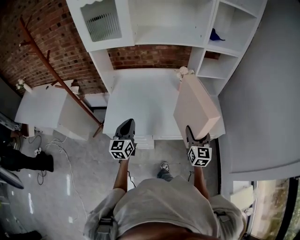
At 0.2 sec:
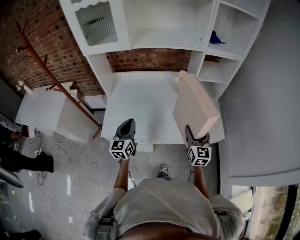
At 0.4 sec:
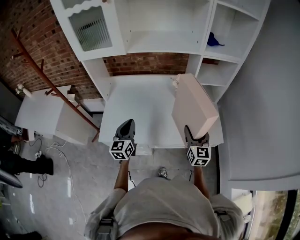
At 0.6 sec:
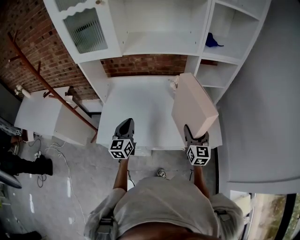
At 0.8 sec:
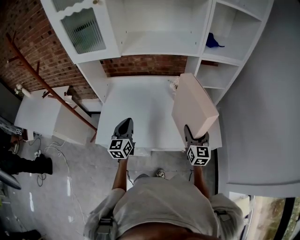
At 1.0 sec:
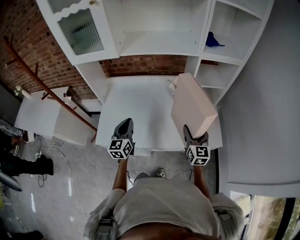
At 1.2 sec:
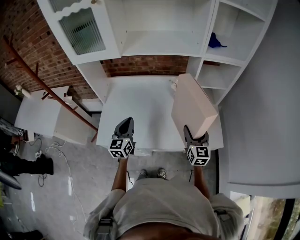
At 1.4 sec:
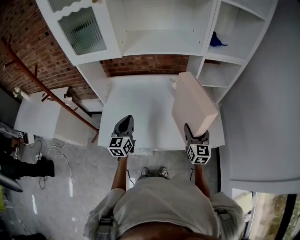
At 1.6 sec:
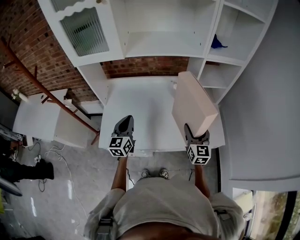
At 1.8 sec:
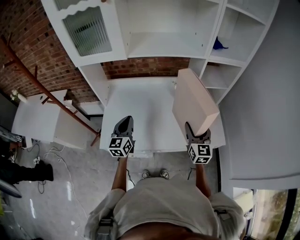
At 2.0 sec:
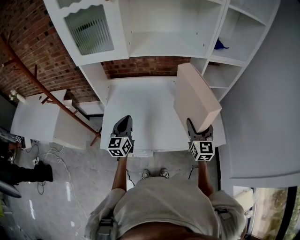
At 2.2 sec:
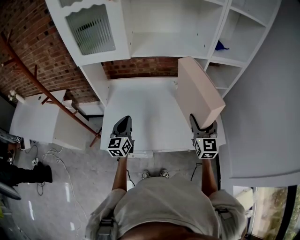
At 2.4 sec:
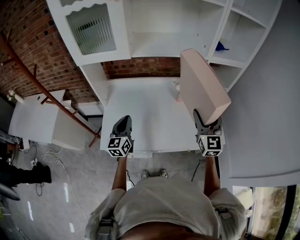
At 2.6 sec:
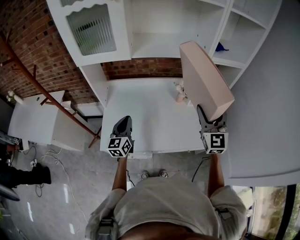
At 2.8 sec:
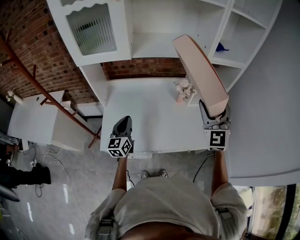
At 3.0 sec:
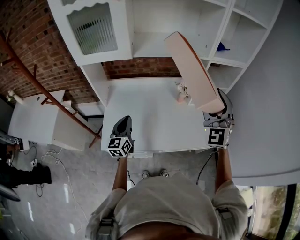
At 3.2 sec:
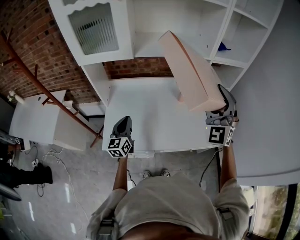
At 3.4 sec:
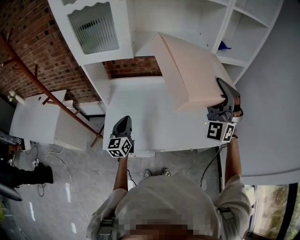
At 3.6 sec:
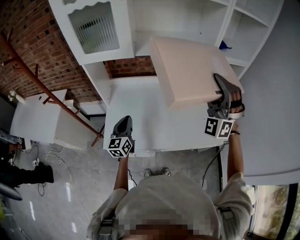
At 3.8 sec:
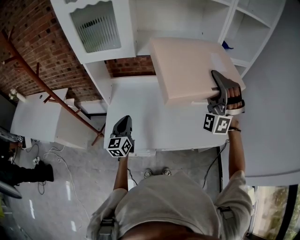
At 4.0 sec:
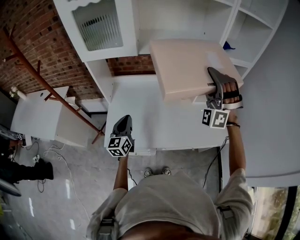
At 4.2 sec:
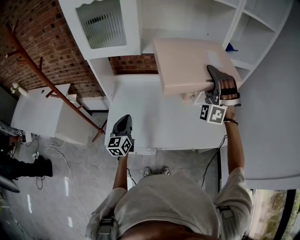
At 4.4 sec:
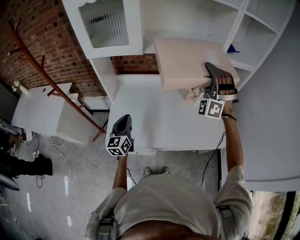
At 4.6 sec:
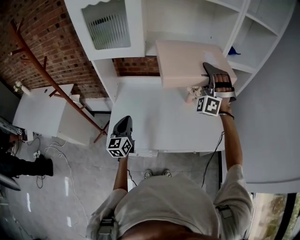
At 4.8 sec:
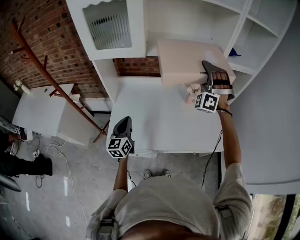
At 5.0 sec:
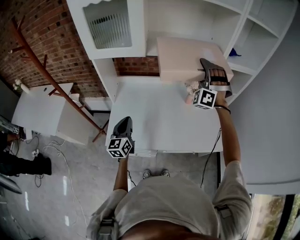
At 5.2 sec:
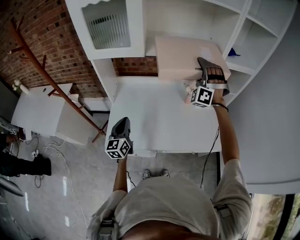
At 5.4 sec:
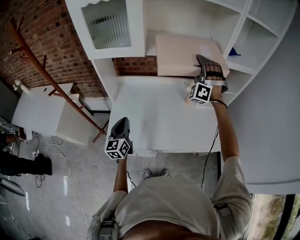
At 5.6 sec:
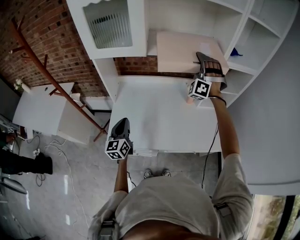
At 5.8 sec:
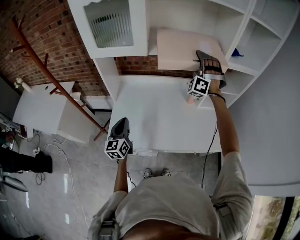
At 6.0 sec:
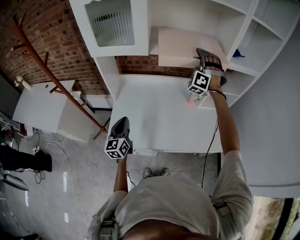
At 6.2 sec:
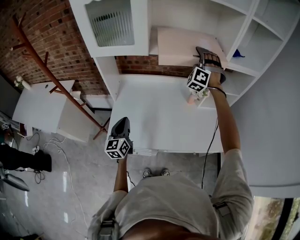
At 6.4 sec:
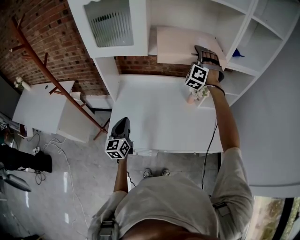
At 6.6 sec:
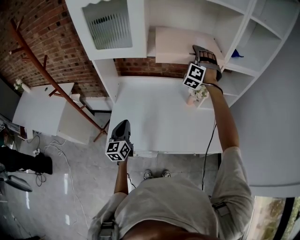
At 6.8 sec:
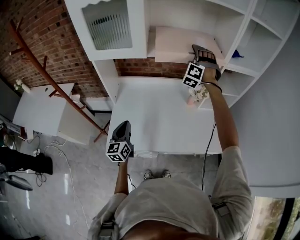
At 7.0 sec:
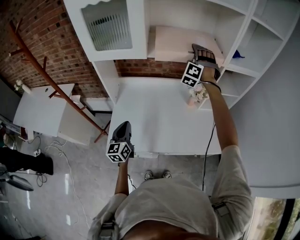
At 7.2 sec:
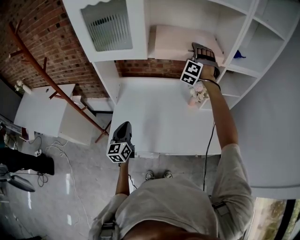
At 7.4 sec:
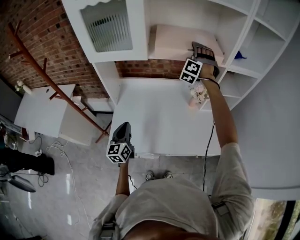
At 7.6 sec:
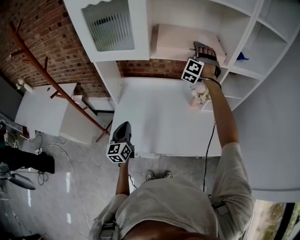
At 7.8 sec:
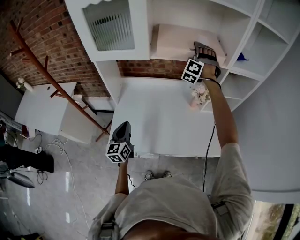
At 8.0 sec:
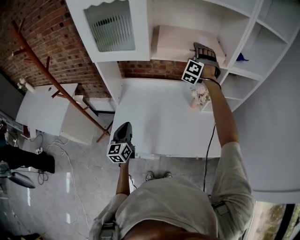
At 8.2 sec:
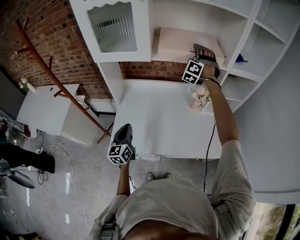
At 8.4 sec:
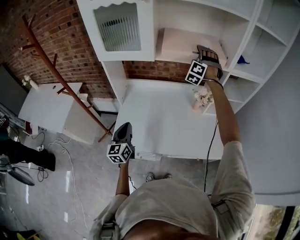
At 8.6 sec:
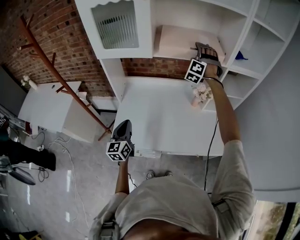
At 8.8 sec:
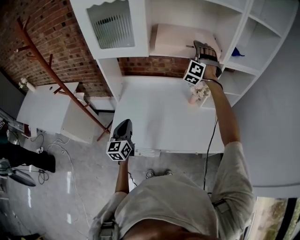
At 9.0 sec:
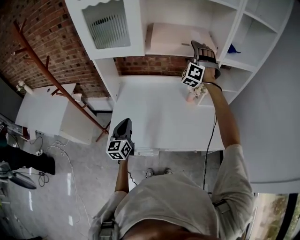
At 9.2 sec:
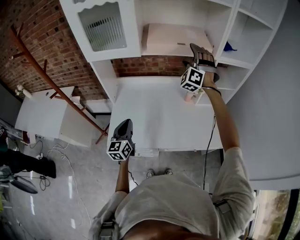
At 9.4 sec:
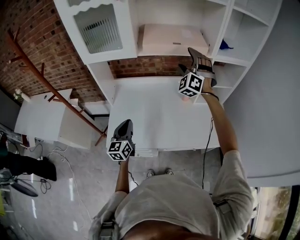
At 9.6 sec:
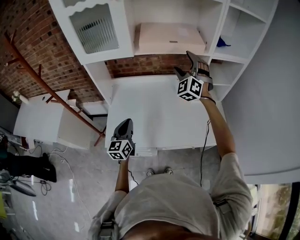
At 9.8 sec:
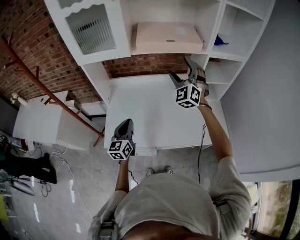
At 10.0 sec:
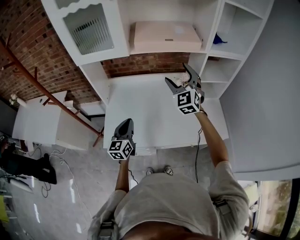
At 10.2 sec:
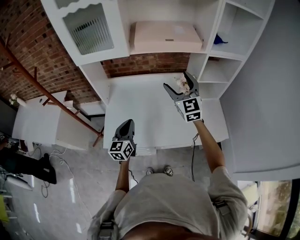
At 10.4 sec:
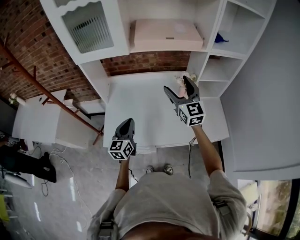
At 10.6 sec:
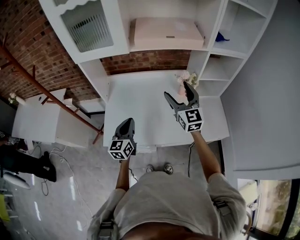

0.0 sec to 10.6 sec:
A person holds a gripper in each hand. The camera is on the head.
0.0 sec to 1.6 sec: The grippers both shift forward by some 15 cm.
1.6 sec to 3.0 sec: The right gripper goes some 20 cm upward, and rolls counterclockwise, seen from behind, by about 50 degrees. Meanwhile the left gripper heads to the left, covering about 5 cm.
3.0 sec to 4.6 sec: The right gripper heads forward and to the left, covering roughly 15 cm, and rotates around the line of its fingers by approximately 50 degrees, counterclockwise from behind.
4.6 sec to 6.0 sec: The right gripper shifts some 10 cm forward.
6.0 sec to 7.6 sec: The right gripper is displaced forward by some 5 cm.
7.6 sec to 9.0 sec: The right gripper is displaced backward by approximately 5 cm.
9.0 sec to 10.6 sec: The right gripper heads backward and downward, covering some 20 cm, and rotates around the line of its fingers by about 70 degrees, clockwise from behind. Meanwhile the left gripper heads to the right, covering some 5 cm.

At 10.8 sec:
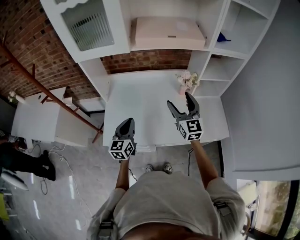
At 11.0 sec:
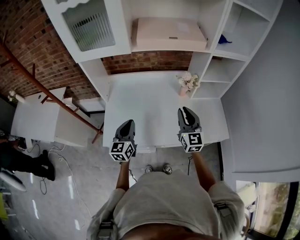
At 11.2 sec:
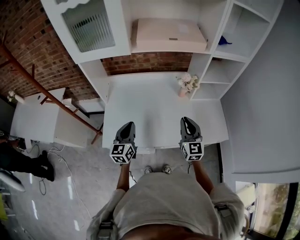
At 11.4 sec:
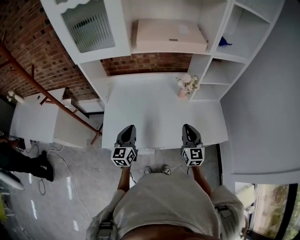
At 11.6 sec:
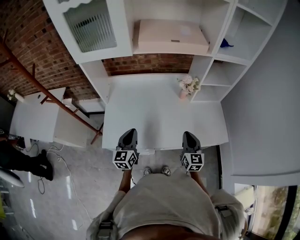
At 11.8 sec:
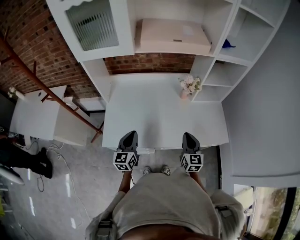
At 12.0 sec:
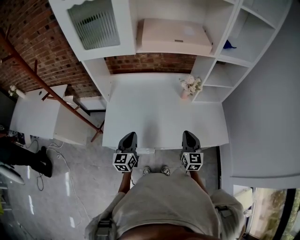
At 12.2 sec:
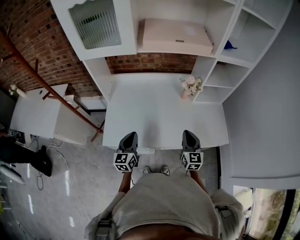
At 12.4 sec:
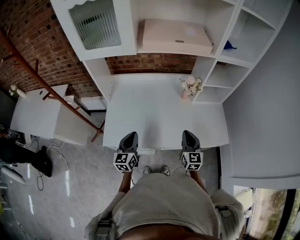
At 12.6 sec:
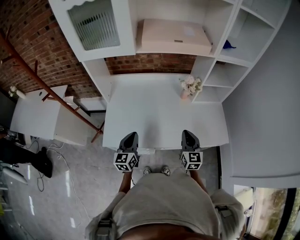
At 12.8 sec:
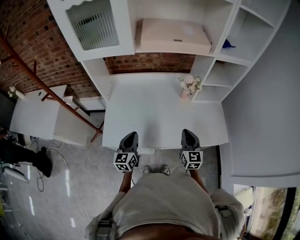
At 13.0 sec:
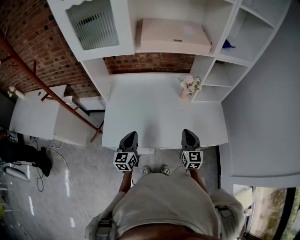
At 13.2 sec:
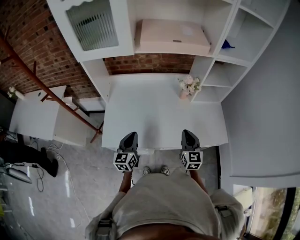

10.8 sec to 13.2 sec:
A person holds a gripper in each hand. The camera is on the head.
10.8 sec to 12.0 sec: The right gripper moves downward, backward and to the right, about 15 cm, and closes up, while the left gripper moves about 5 cm.
12.0 sec to 13.2 sec: The two grippers keep their place.

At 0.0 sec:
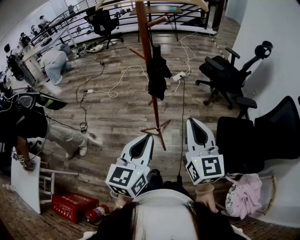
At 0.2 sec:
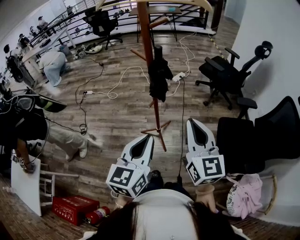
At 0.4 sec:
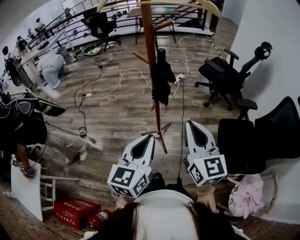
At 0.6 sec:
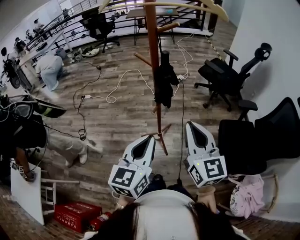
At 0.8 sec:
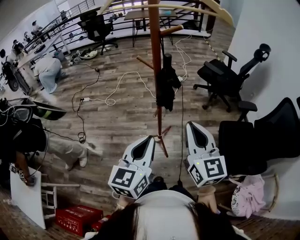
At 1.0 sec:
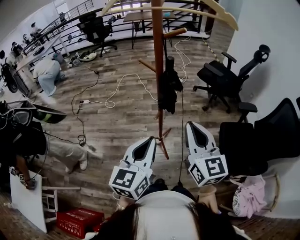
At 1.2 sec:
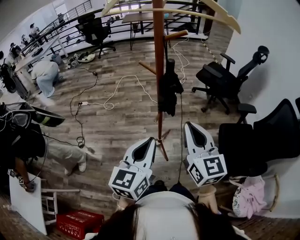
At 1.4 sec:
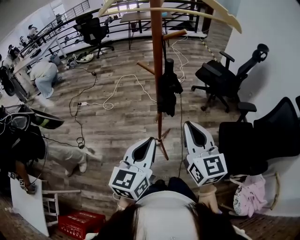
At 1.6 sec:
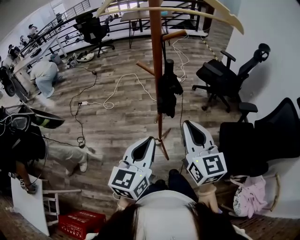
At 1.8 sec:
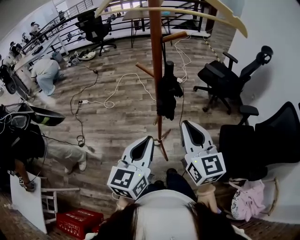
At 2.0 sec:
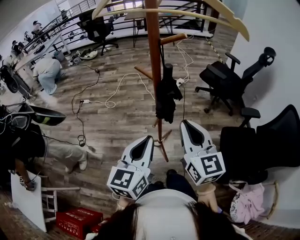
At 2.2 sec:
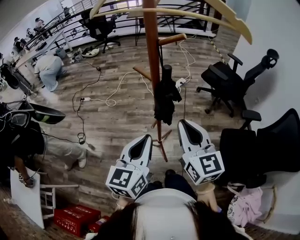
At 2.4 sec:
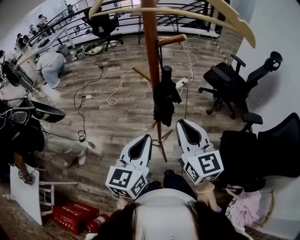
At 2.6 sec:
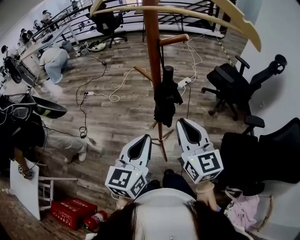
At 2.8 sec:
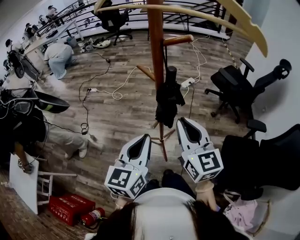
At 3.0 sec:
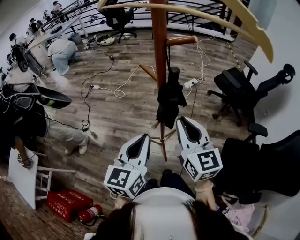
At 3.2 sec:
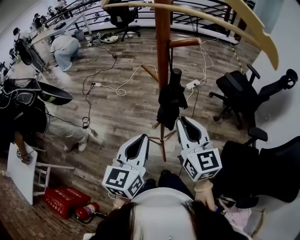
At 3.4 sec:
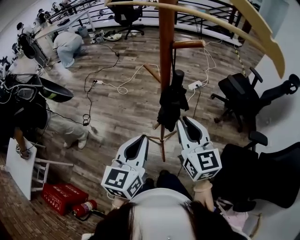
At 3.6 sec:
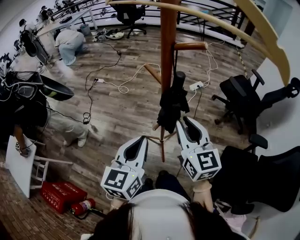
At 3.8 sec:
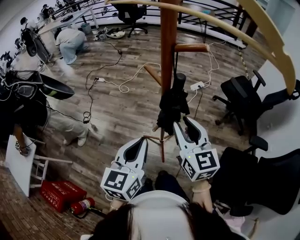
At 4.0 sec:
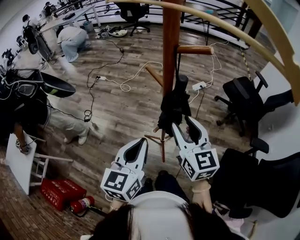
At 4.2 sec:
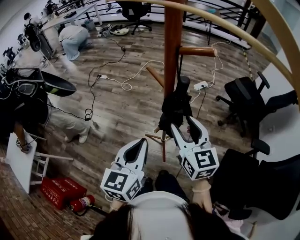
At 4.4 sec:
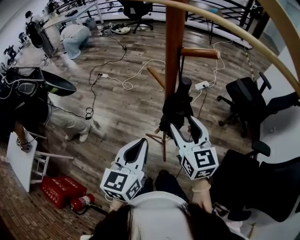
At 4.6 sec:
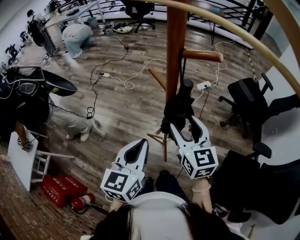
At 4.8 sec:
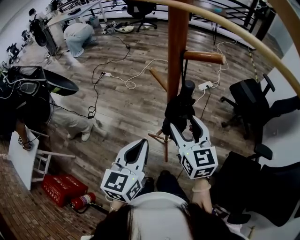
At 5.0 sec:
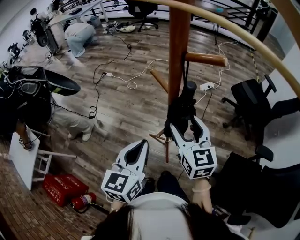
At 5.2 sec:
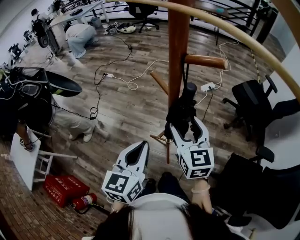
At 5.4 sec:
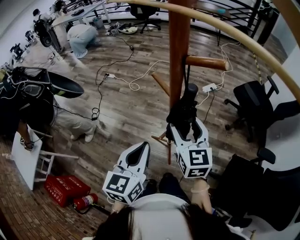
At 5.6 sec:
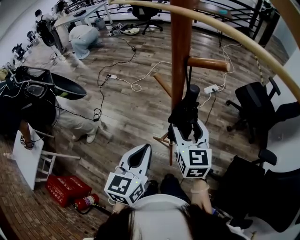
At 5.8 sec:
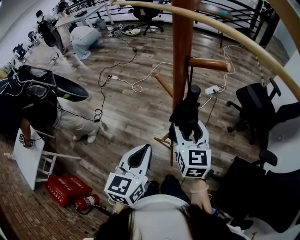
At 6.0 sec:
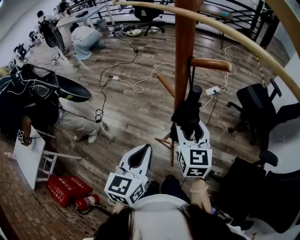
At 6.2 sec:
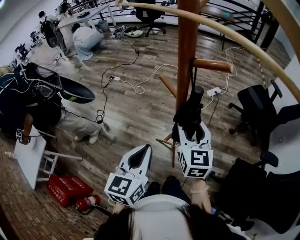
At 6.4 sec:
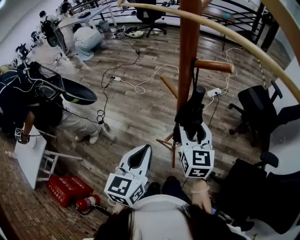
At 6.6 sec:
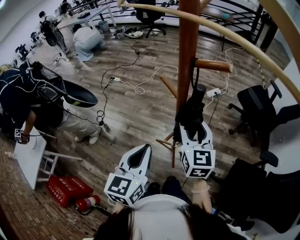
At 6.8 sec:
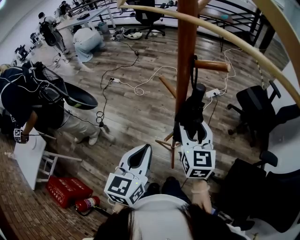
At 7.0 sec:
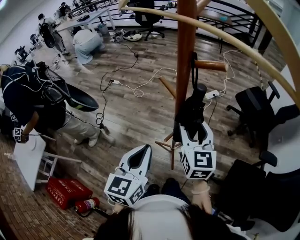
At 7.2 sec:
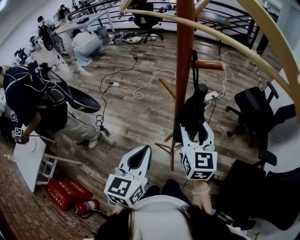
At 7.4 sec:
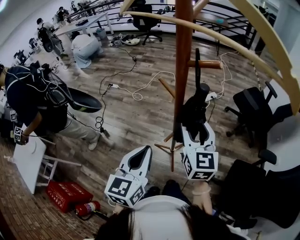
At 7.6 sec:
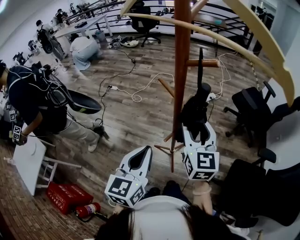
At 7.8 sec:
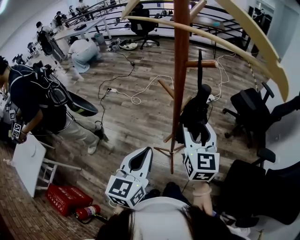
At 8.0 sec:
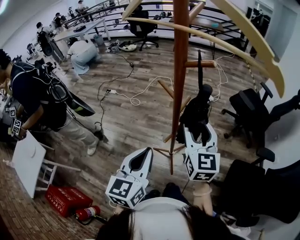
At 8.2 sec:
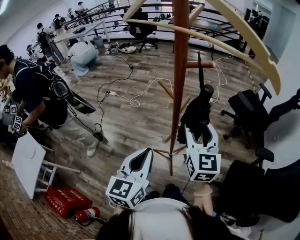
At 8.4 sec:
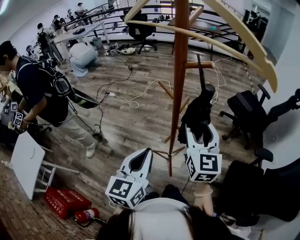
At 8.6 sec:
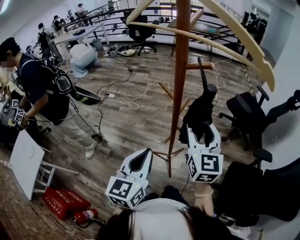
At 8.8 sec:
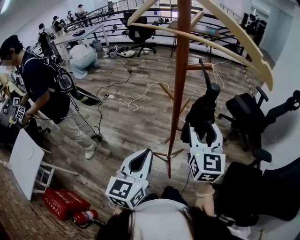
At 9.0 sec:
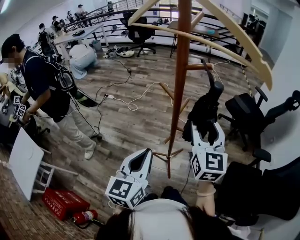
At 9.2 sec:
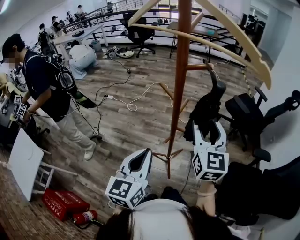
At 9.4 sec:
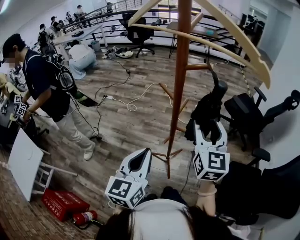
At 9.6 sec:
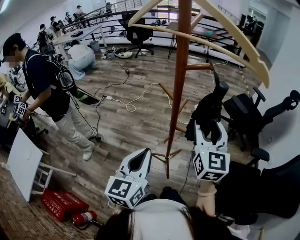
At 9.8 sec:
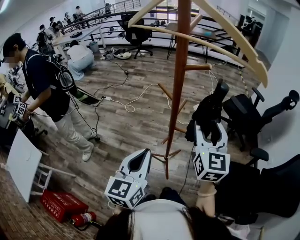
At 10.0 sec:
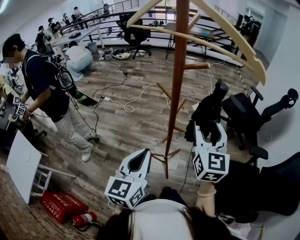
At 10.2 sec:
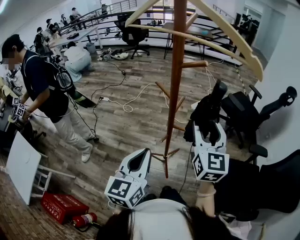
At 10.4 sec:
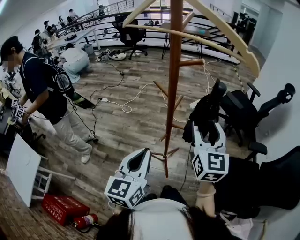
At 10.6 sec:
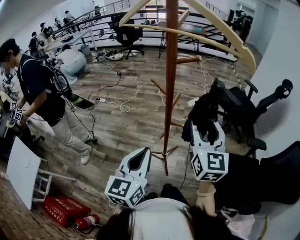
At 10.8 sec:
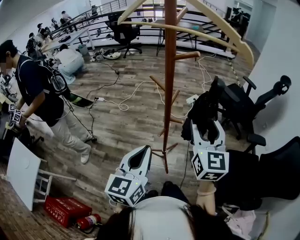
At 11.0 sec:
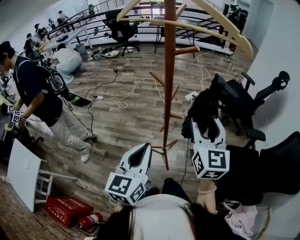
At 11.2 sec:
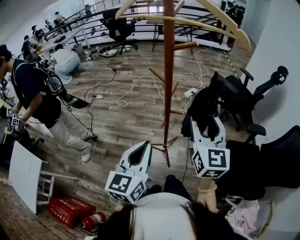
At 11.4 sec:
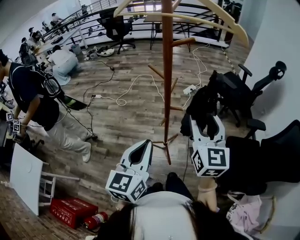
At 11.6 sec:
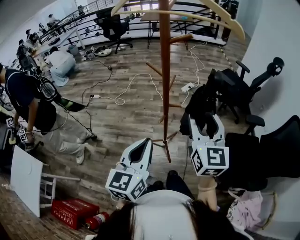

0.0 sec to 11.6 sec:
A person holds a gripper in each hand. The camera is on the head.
0.0 sec to 1.4 sec: The right gripper moves to the left and forward, about 10 cm; the left gripper travels forward and to the left by roughly 10 cm.
1.4 sec to 2.8 sec: Both grippers move forward, approximately 10 cm.
2.8 sec to 4.4 sec: The right gripper goes roughly 10 cm forward, and opens.
4.4 sec to 5.8 sec: The right gripper moves about 5 cm.
5.8 sec to 7.2 sec: The grippers make only small movements.
7.2 sec to 8.8 sec: The right gripper moves upward, roughly 5 cm.
8.8 sec to 10.2 sec: The grippers make only small movements.
10.2 sec to 11.6 sec: The right gripper is displaced backward by some 10 cm; the left gripper moves backward, some 5 cm.
